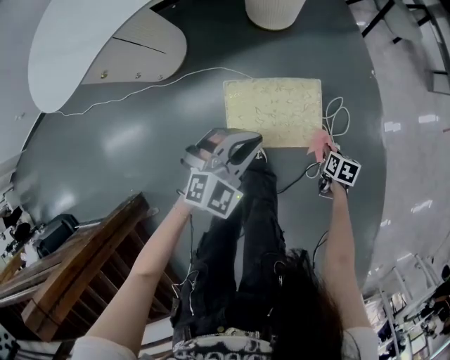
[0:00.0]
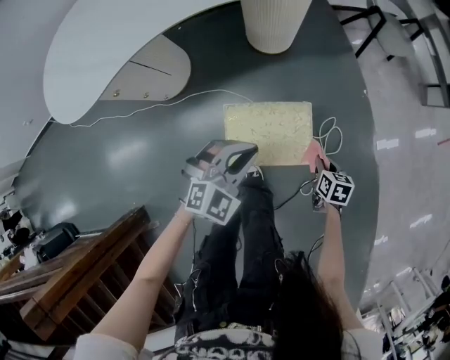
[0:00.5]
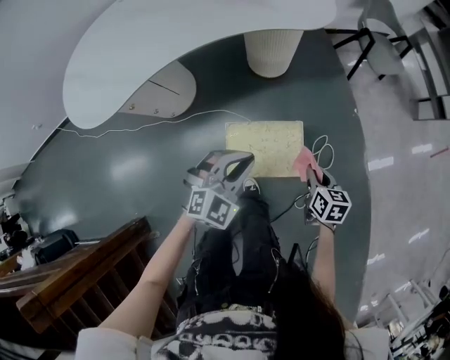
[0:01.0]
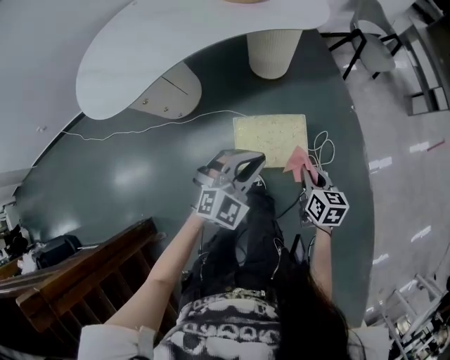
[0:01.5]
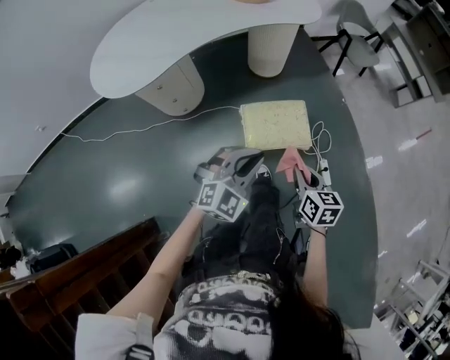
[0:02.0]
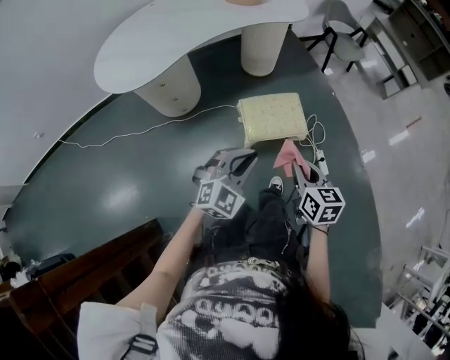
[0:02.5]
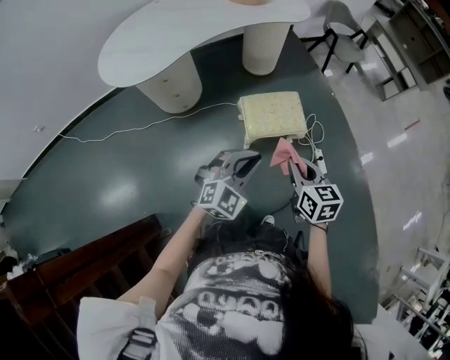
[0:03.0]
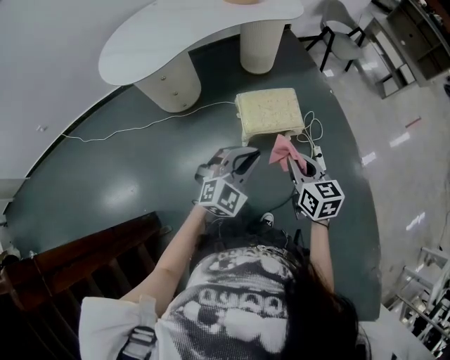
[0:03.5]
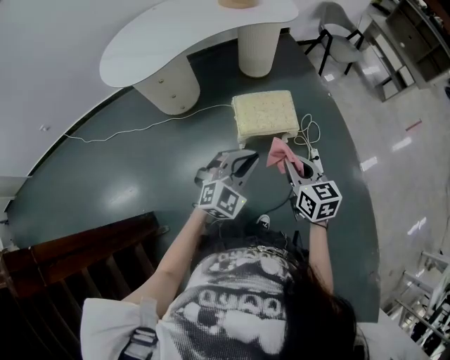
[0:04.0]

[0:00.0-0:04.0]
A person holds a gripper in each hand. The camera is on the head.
0:00.0 to 0:02.0: The right gripper travels upward, to the left and backward by approximately 50 cm, and points its fingers approximately 30 degrees further upward. The left gripper travels upward and backward by about 30 cm.
0:02.0 to 0:04.0: The right gripper heads backward and upward, covering about 15 cm. Meanwhile the left gripper moves backward, about 15 cm.

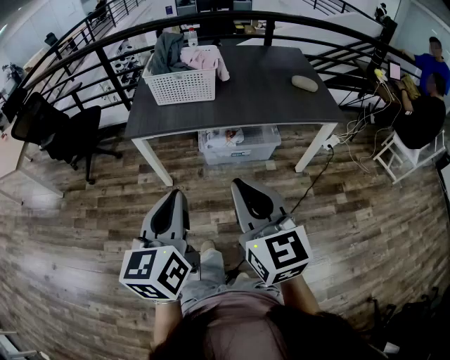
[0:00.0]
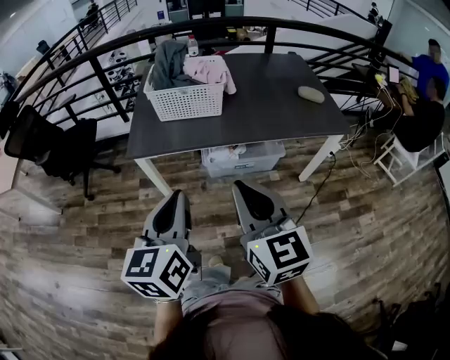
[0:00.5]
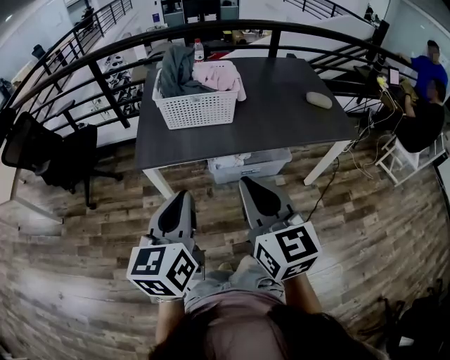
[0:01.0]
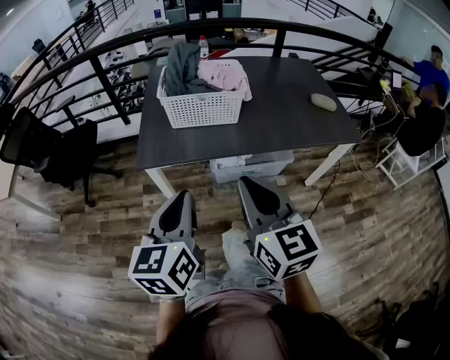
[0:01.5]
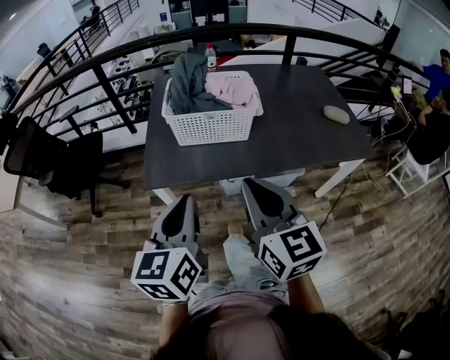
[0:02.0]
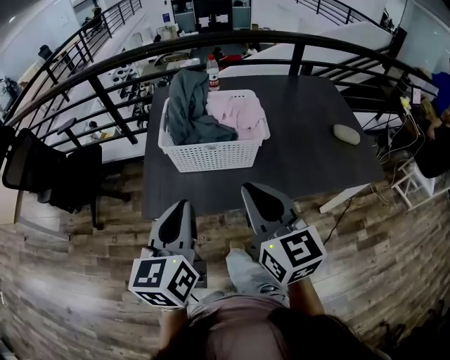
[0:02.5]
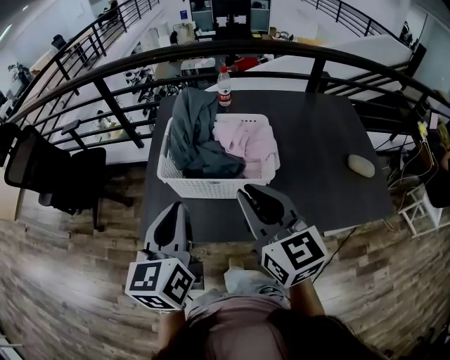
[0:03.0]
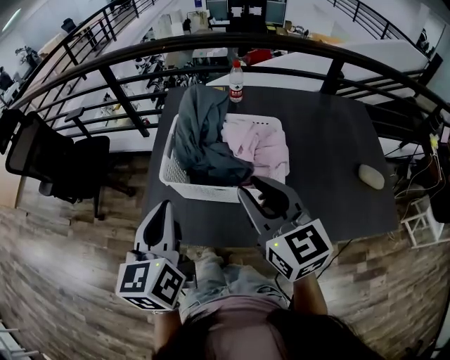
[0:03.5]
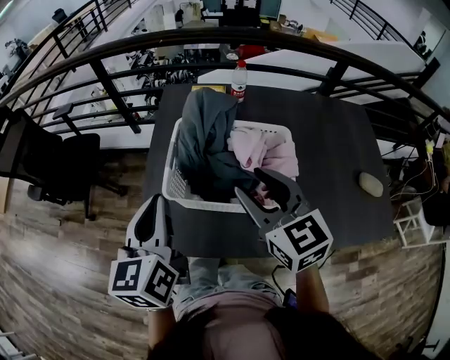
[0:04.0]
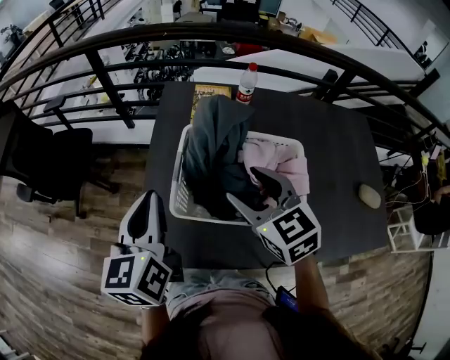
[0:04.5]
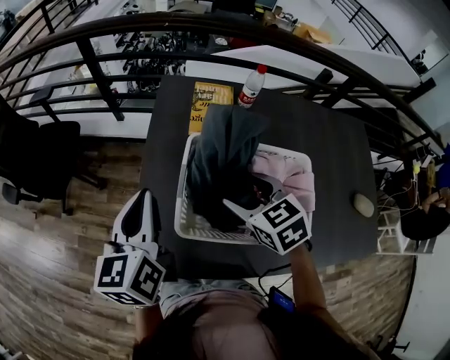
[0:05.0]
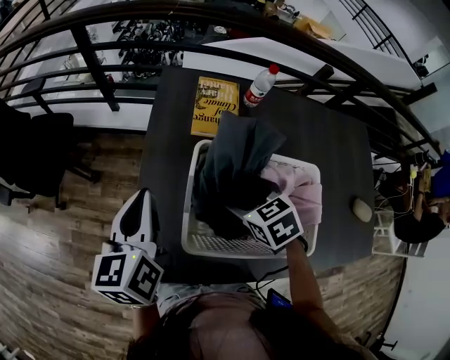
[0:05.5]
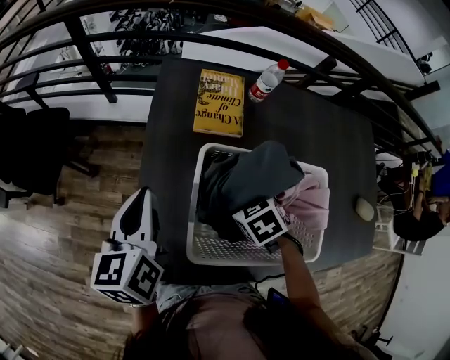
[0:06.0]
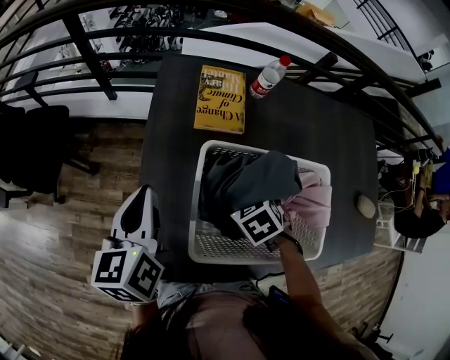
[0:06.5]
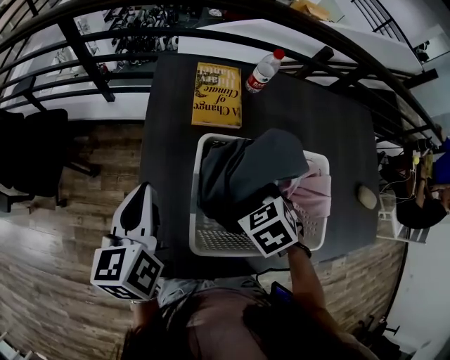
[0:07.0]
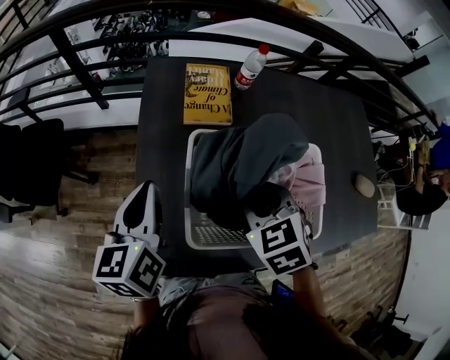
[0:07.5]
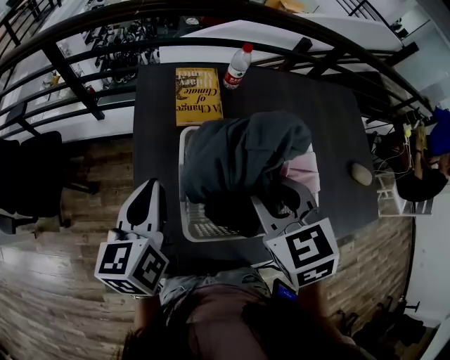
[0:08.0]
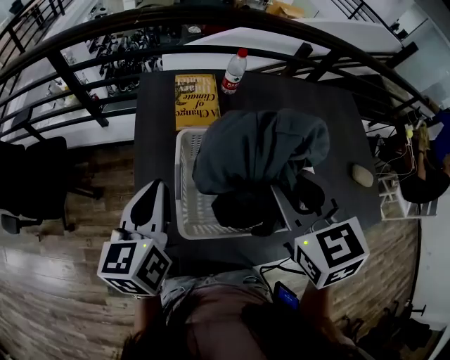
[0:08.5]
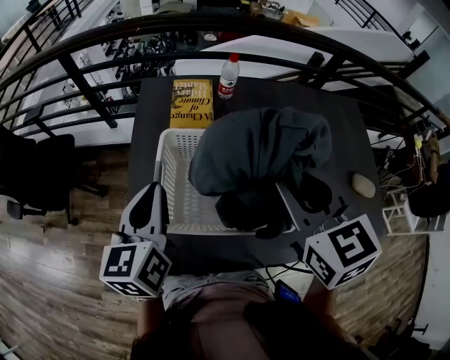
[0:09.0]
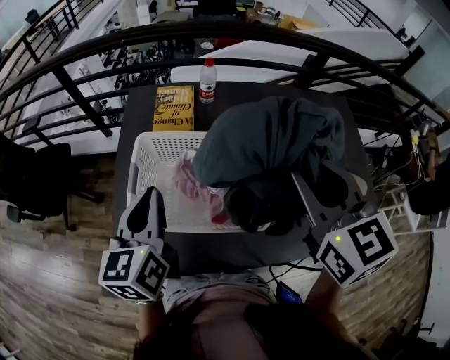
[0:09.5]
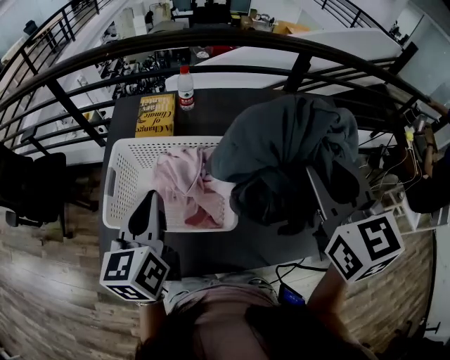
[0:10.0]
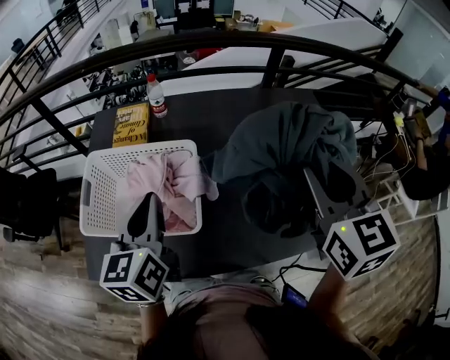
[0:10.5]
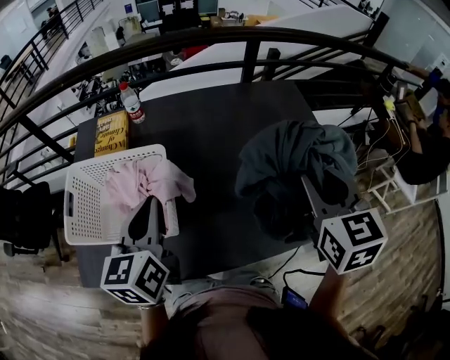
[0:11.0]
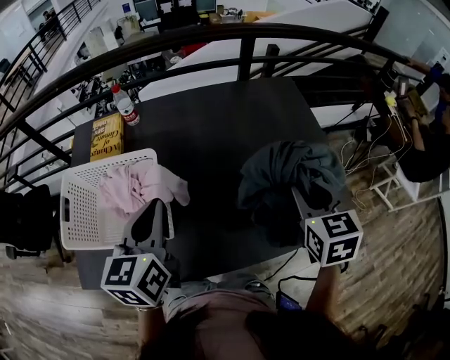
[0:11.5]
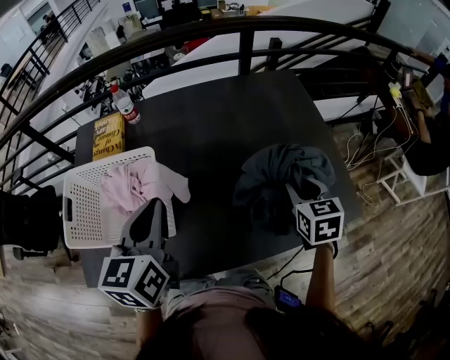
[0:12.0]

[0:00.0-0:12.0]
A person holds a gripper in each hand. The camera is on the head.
0:00.0 to 0:02.0: The two grippers go approximately 30 cm forward and to the left.
0:02.0 to 0:04.0: The two grippers go about 35 cm forward. The right gripper turns by some 20 degrees, and opens up.
0:04.0 to 0:06.0: The right gripper moves downward and forward, approximately 30 cm, tips its fingers downward by approximately 50 degrees, and opens its fingers. The left gripper heads forward and downward, covering some 25 cm.
0:06.0 to 0:08.0: The right gripper travels upward by roughly 20 cm, swivels some 30 degrees, and closes its fingers. Meanwhile the left gripper shifts by approximately 5 cm.
0:08.0 to 0:10.0: The left gripper is displaced to the right by approximately 20 cm. Meanwhile the right gripper shifts roughly 35 cm to the right and upward, and rotates roughly 20 degrees.
0:10.0 to 0:12.0: The right gripper goes approximately 35 cm to the right and downward, and turns by about 30 degrees; the left gripper moves to the right, roughly 20 cm.

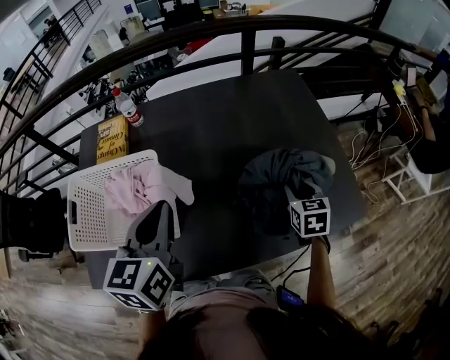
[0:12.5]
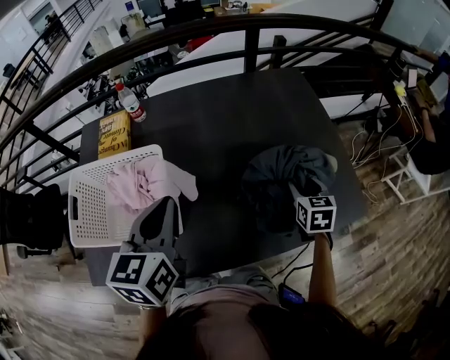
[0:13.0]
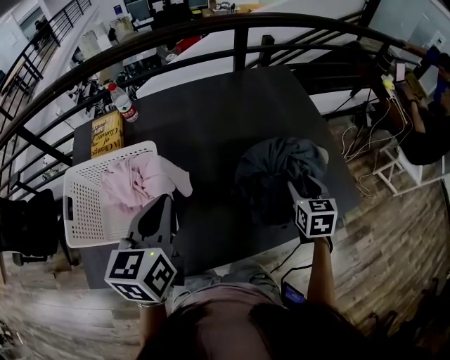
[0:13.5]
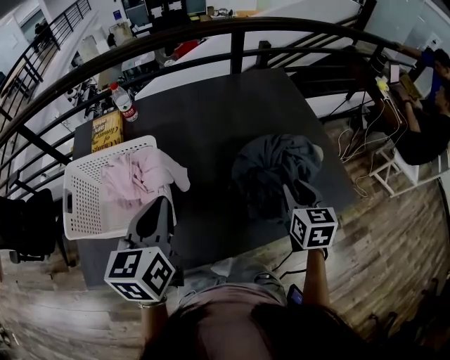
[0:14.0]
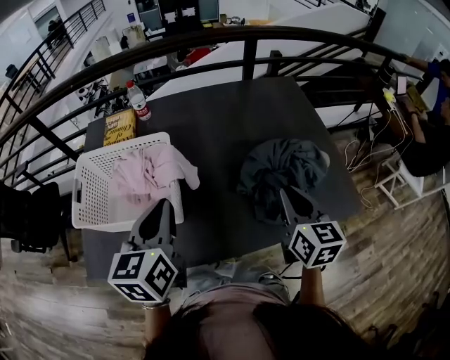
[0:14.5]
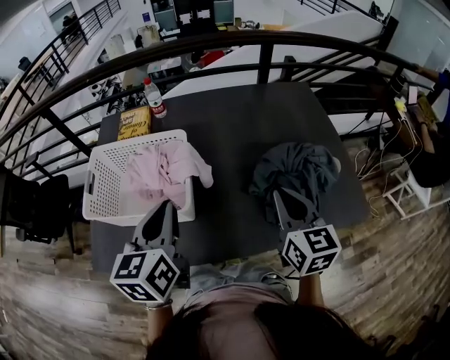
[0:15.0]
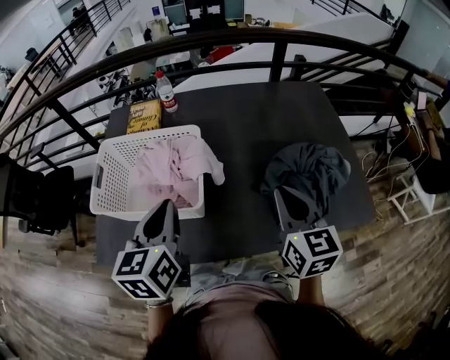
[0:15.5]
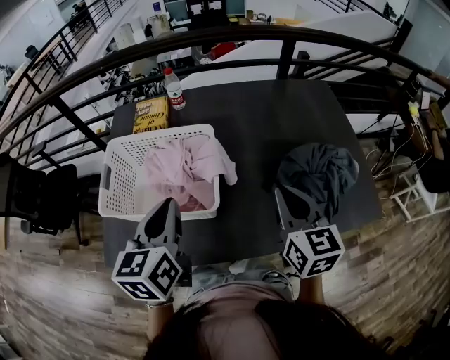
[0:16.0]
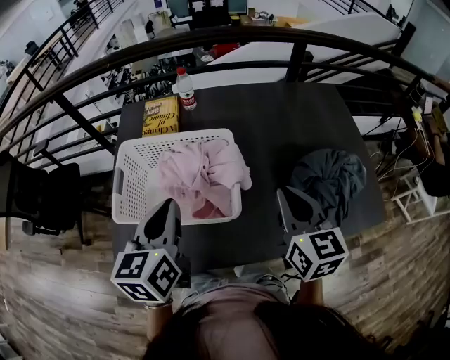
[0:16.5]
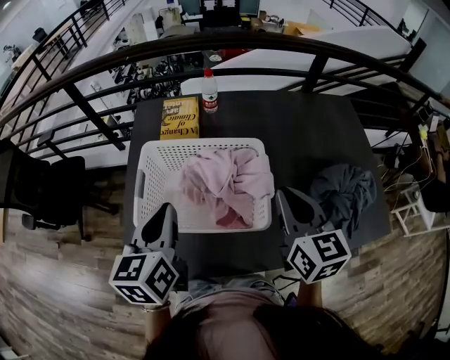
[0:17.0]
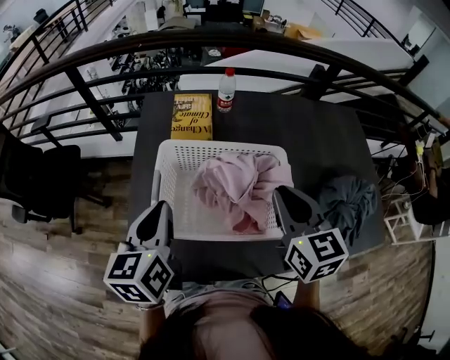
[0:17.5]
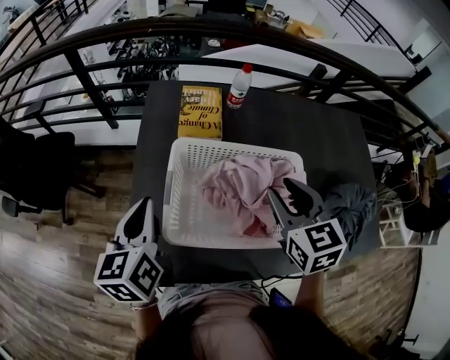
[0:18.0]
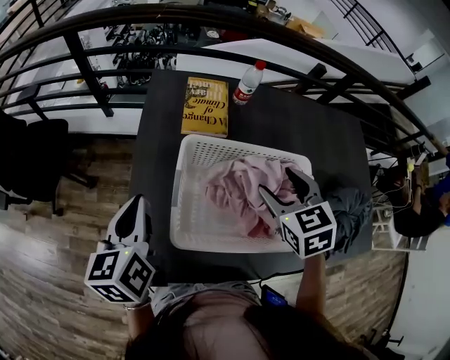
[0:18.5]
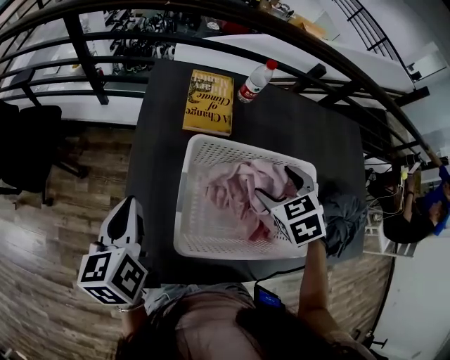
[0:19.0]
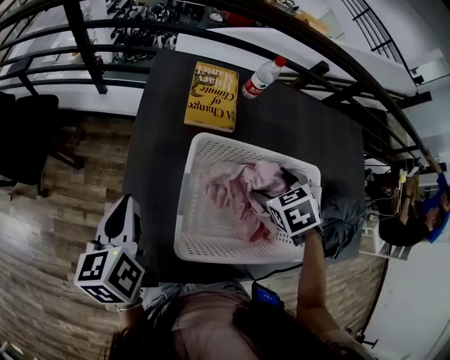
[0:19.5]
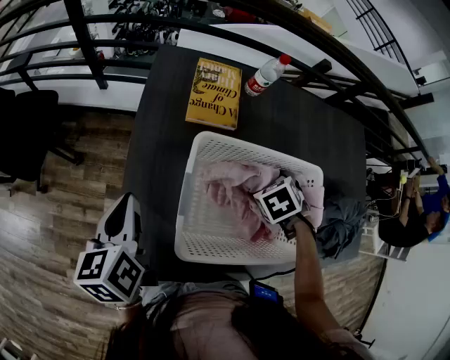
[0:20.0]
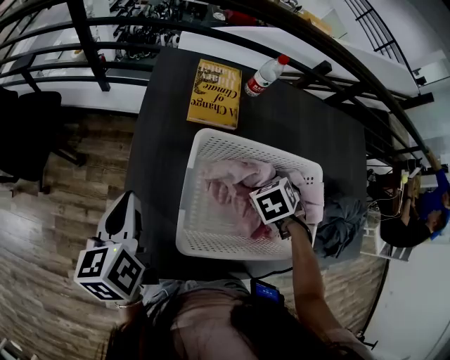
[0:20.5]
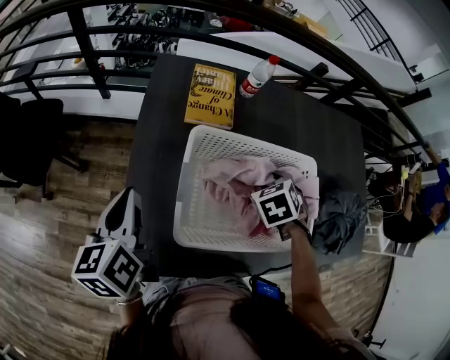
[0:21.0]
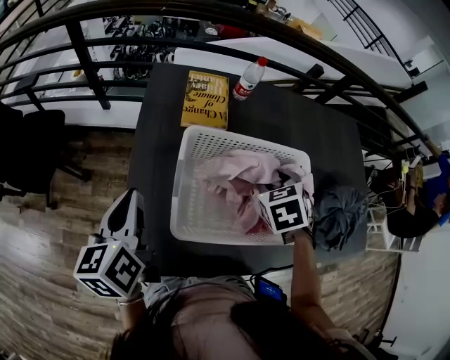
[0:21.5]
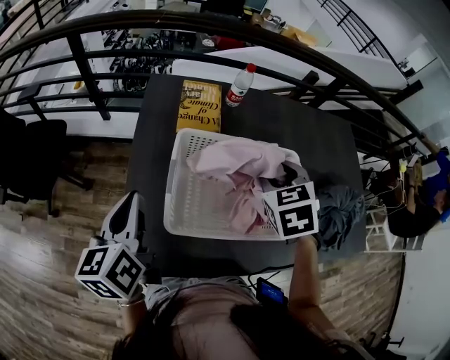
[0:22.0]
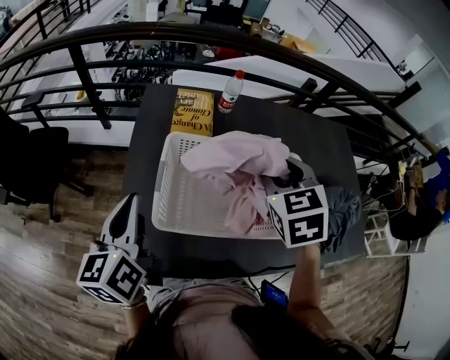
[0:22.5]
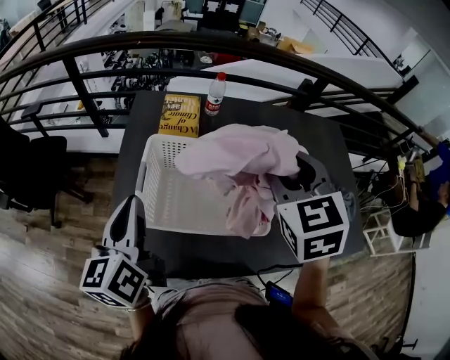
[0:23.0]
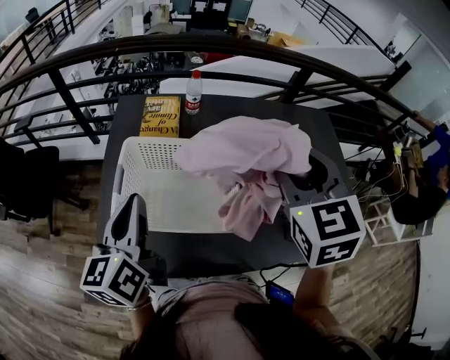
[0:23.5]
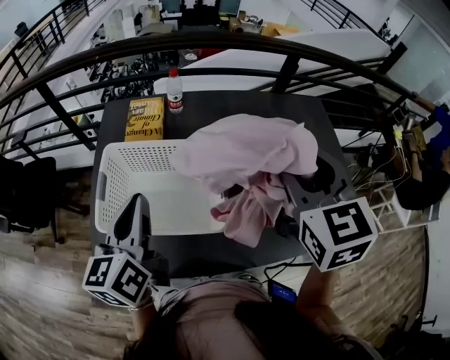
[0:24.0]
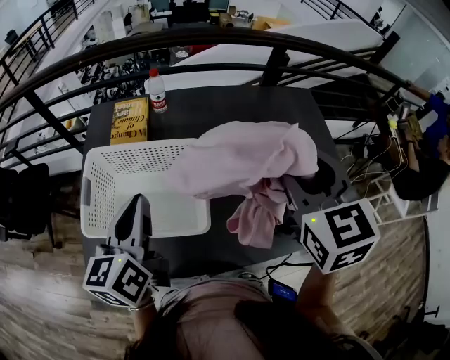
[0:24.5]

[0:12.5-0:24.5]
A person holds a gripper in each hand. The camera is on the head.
0:12.5 to 0:14.5: The right gripper moves upward, backward and to the left, about 20 cm, and turns by approximately 20 degrees; the left gripper travels backward by about 5 cm.
0:14.5 to 0:16.5: The grippers both shift to the left by roughly 15 cm.
0:16.5 to 0:18.5: The right gripper is displaced to the left and forward by roughly 25 cm, changes its angle by about 40 degrees, and opens up. The left gripper heads to the left, covering approximately 25 cm.
0:18.5 to 0:20.5: The right gripper heads downward, covering some 15 cm, and swivels about 40 degrees. Meanwhile the left gripper goes about 5 cm downward.
0:20.5 to 0:22.5: The left gripper goes about 15 cm upward and to the right; the right gripper is displaced upward by about 25 cm, and points its fingers approximately 30 degrees further upward.
0:22.5 to 0:24.5: The left gripper heads to the right, covering roughly 25 cm. The right gripper shifts some 25 cm to the right and upward.
